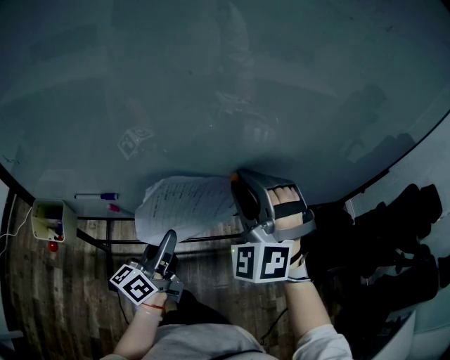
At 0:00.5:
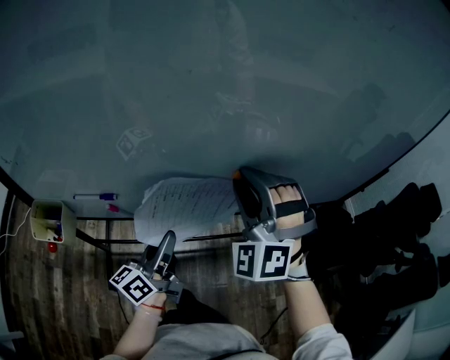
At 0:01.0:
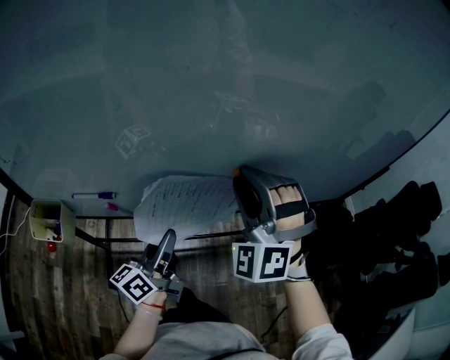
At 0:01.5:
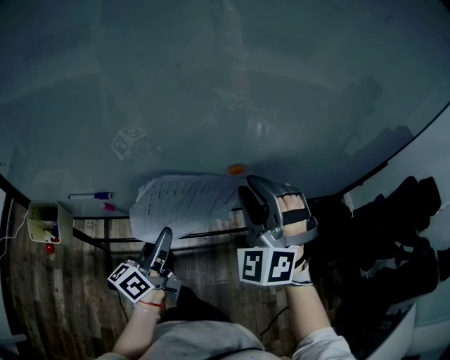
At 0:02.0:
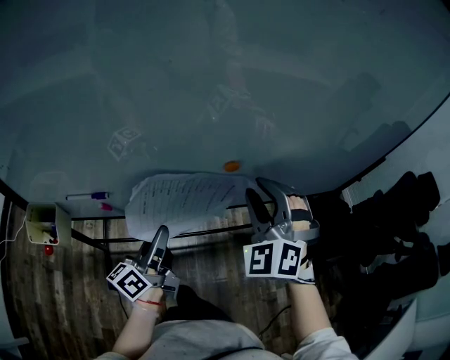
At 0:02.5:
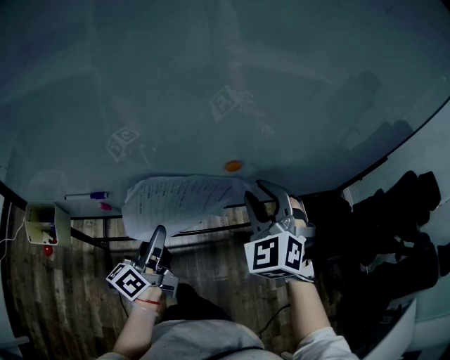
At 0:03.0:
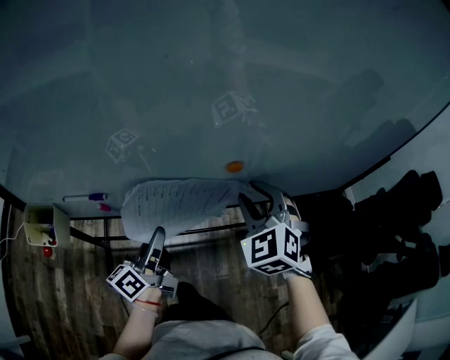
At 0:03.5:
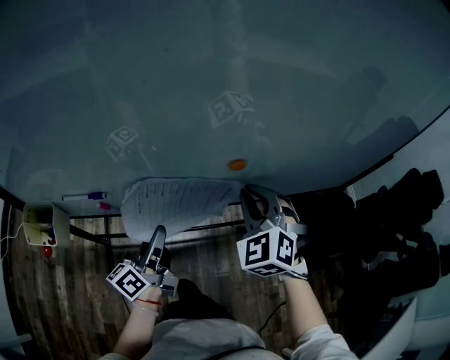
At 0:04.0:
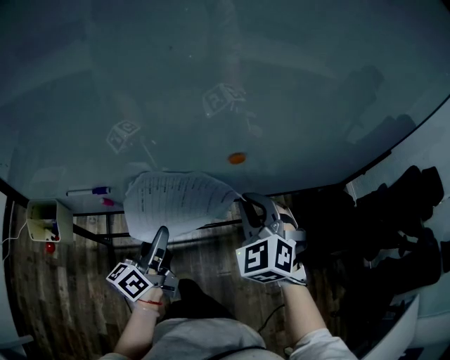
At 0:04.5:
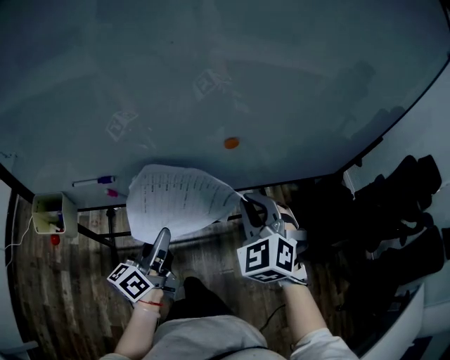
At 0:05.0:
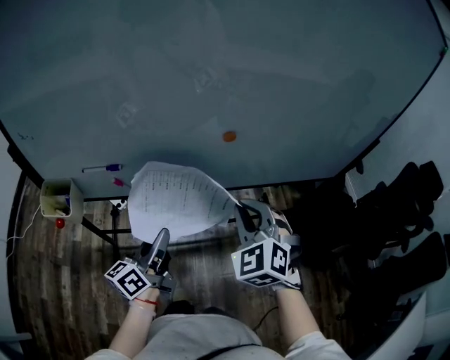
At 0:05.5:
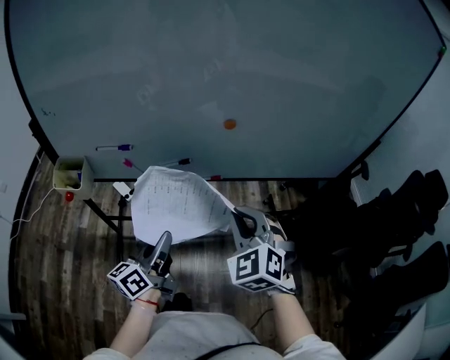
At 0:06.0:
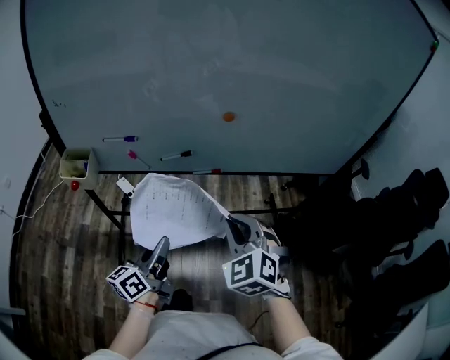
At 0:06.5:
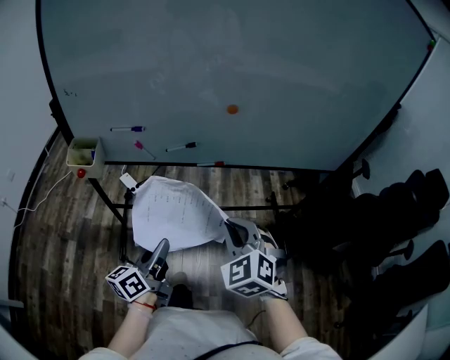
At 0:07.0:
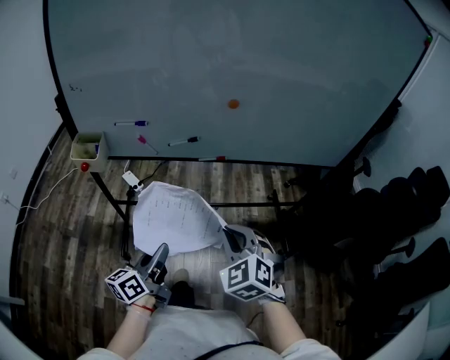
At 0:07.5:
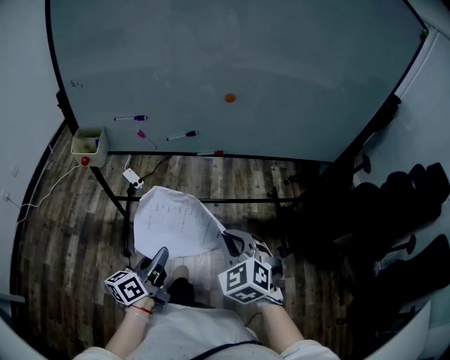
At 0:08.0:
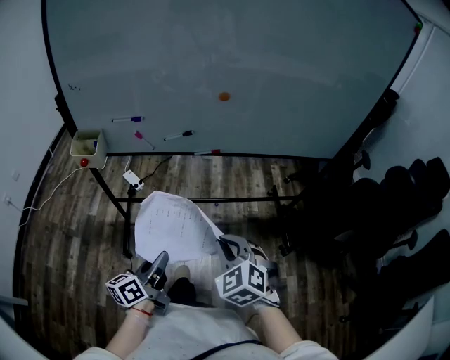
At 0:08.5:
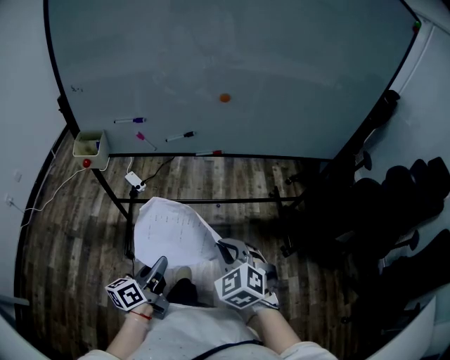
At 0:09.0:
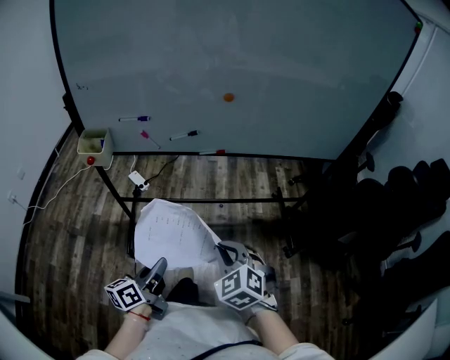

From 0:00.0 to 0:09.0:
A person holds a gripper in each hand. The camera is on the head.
From 0:00.0 to 0:02.0: The right gripper goes approximately 5 cm to the right.
From 0:02.0 to 0:04.5: The left gripper heads backward, covering approximately 5 cm; the right gripper heads backward and downward, covering about 10 cm, and closes its fingers.
From 0:04.5 to 0:07.0: Both grippers travel together backward, about 25 cm.
From 0:07.0 to 0:09.0: The right gripper is displaced backward and downward by roughly 10 cm. Meanwhile the left gripper is displaced backward by about 10 cm.

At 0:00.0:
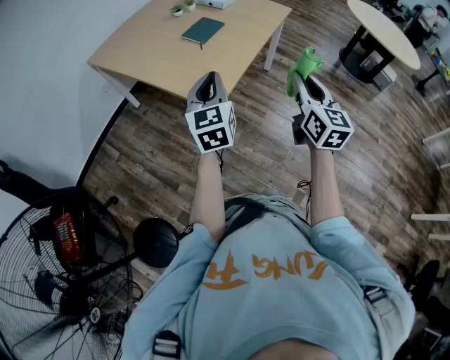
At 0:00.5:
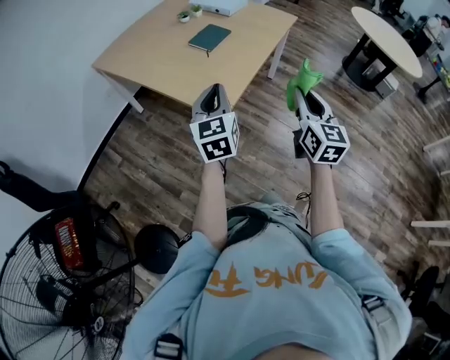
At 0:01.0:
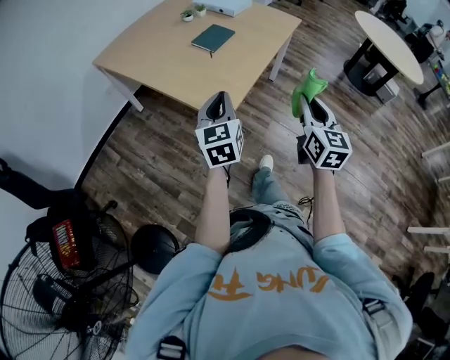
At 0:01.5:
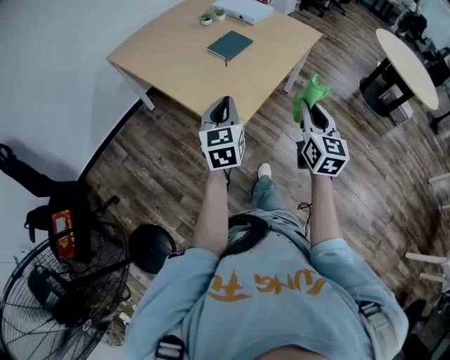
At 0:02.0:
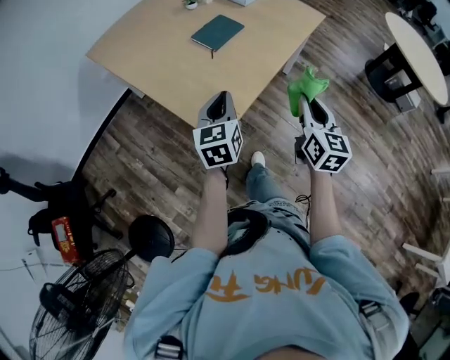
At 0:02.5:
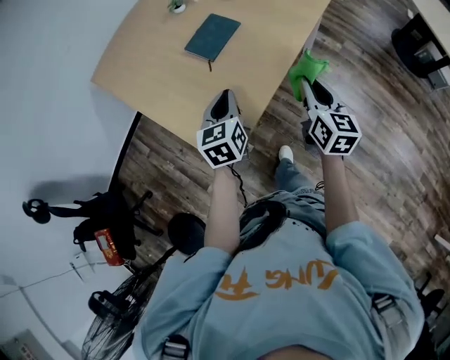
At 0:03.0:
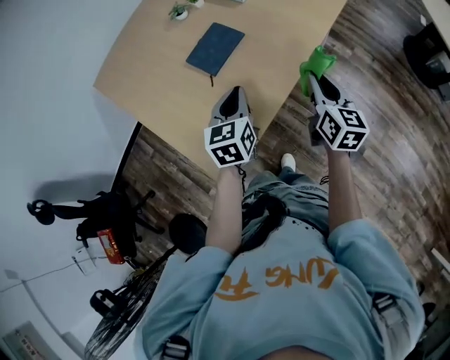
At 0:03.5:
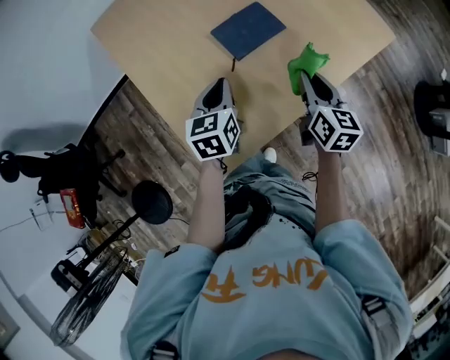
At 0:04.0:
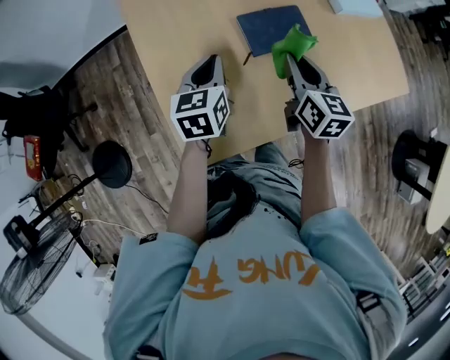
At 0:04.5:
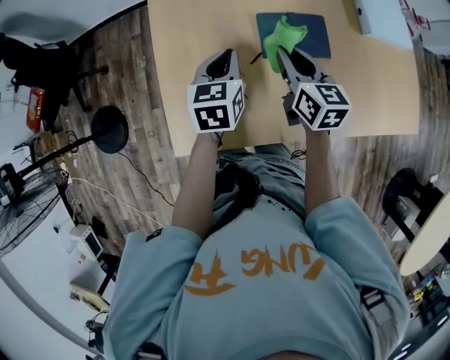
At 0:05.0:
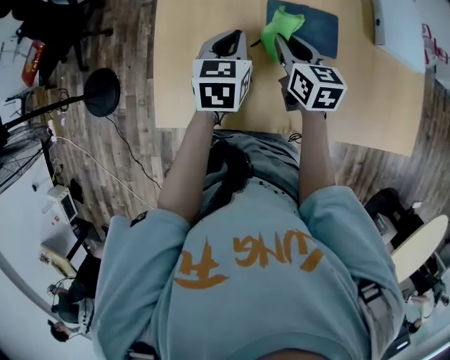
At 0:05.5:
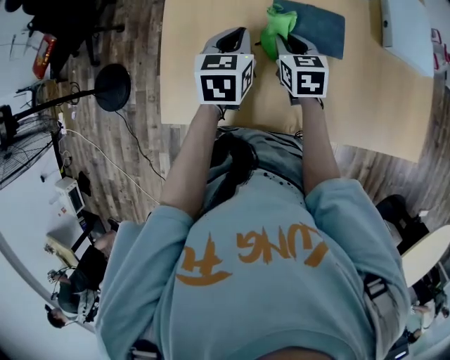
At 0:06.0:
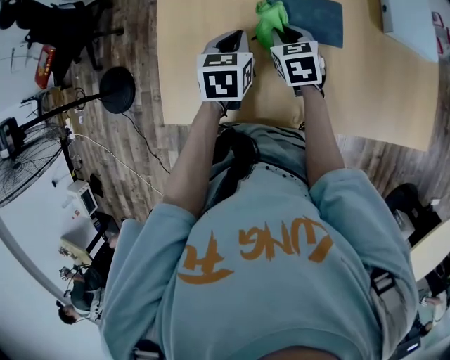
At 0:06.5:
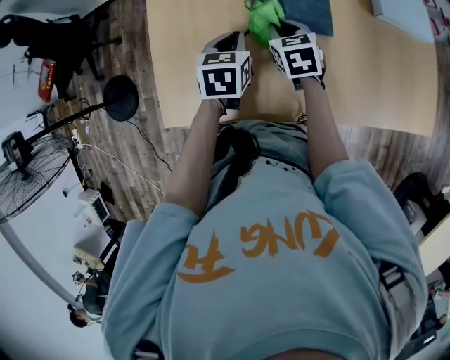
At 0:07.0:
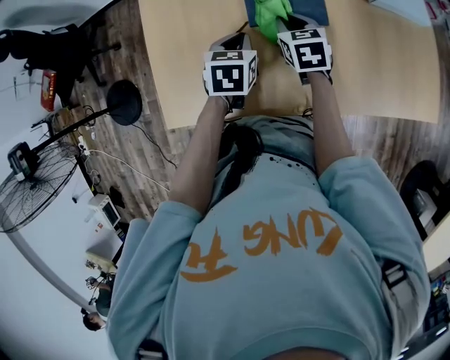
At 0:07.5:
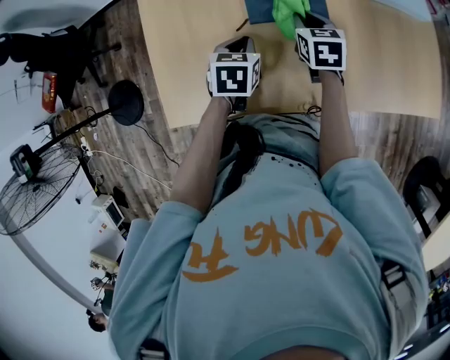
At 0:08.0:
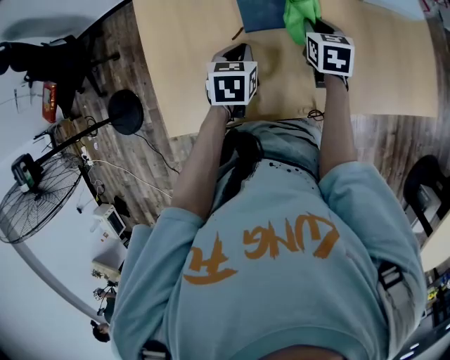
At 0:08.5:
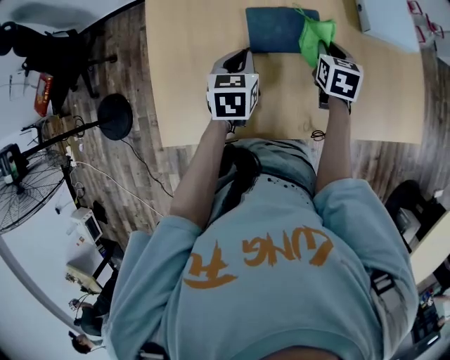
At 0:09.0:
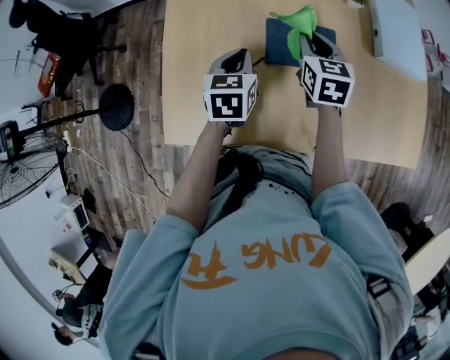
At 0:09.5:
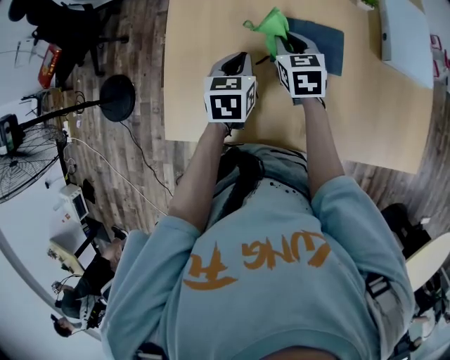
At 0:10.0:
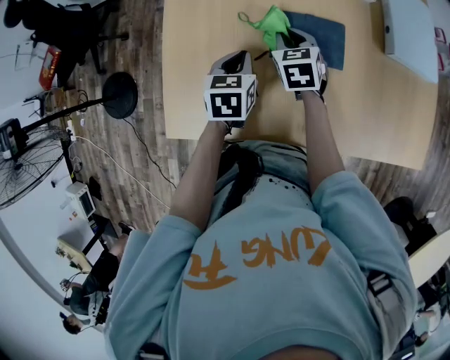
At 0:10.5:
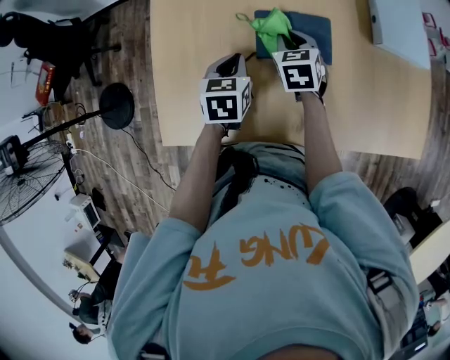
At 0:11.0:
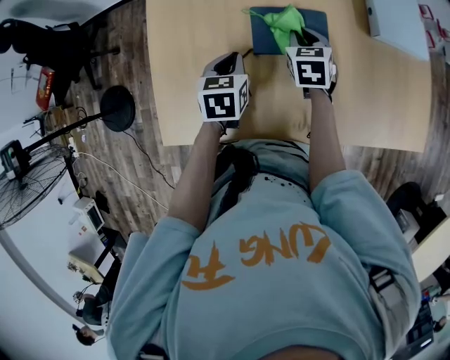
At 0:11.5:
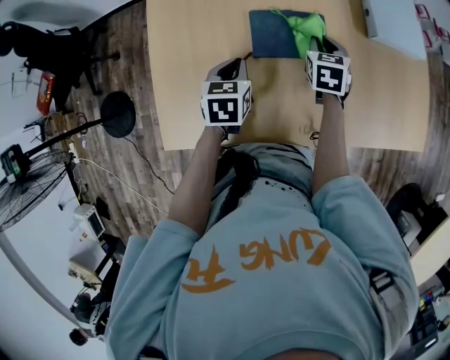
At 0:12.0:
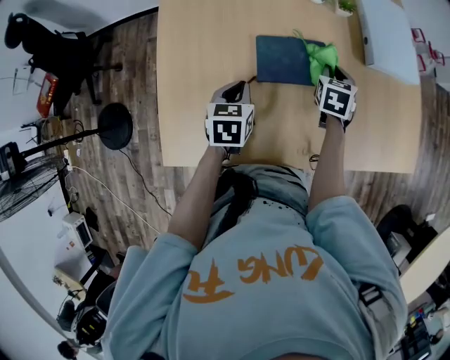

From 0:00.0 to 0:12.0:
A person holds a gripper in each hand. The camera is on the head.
From 0:00.0 to 0:02.0: Both grippers move forward and downward, about 20 cm.
From 0:02.0 to 0:04.0: The left gripper ends up some 30 cm from where it was, and swivels roughly 30 degrees; the right gripper moves about 40 cm, and turns by approximately 40 degrees.
From 0:04.0 to 0:06.0: The left gripper travels downward and to the right by approximately 10 cm, and swivels approximately 20 degrees; the right gripper moves downward and forward, approximately 15 cm, and rotates approximately 40 degrees.
From 0:06.0 to 0:08.0: The left gripper shifts some 5 cm to the right, while the right gripper travels to the right by roughly 15 cm, and rotates about 20 degrees.
From 0:08.0 to 0:10.0: The right gripper moves to the left, some 15 cm, and swivels about 20 degrees. Meanwhile the left gripper shifts some 5 cm to the left.
From 0:10.0 to 0:12.0: The right gripper heads to the right, covering approximately 20 cm, and rotates approximately 30 degrees.

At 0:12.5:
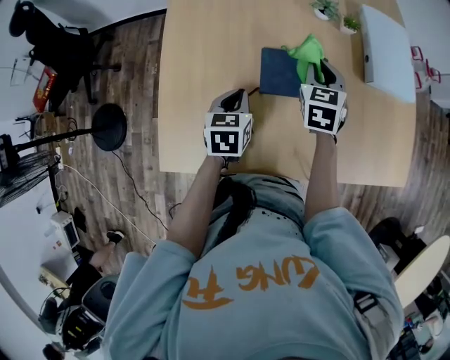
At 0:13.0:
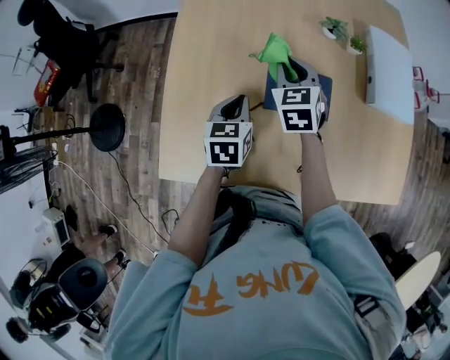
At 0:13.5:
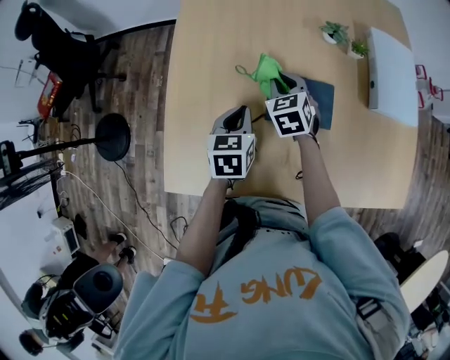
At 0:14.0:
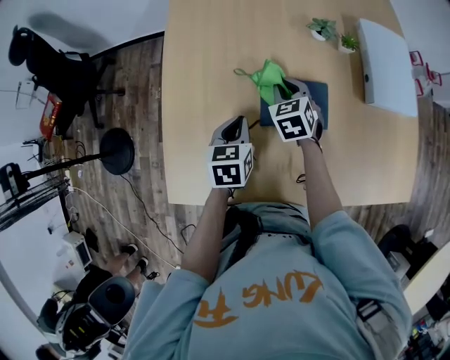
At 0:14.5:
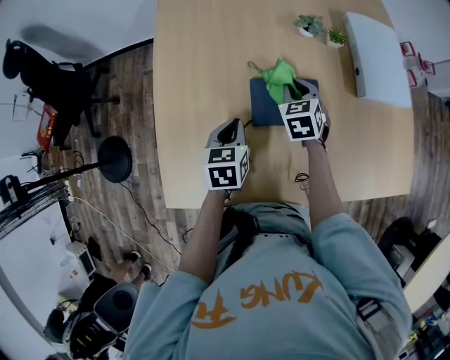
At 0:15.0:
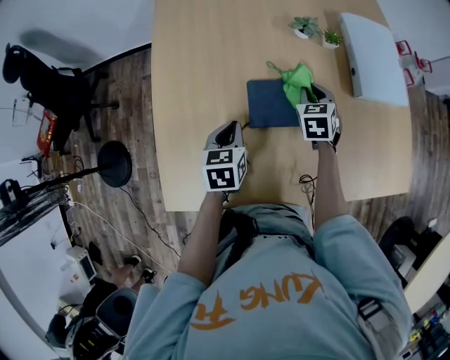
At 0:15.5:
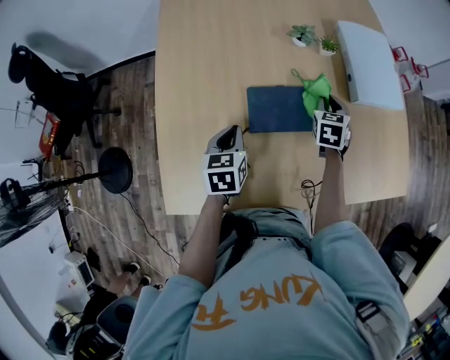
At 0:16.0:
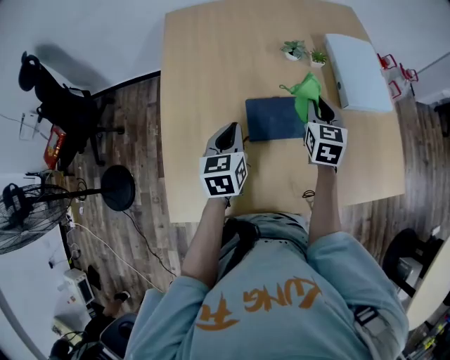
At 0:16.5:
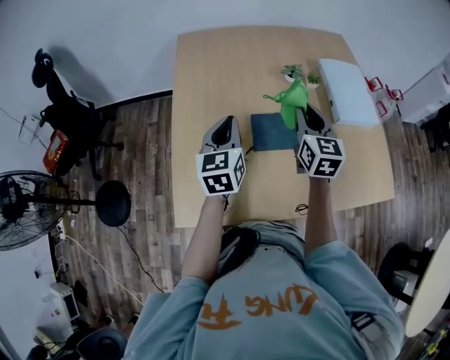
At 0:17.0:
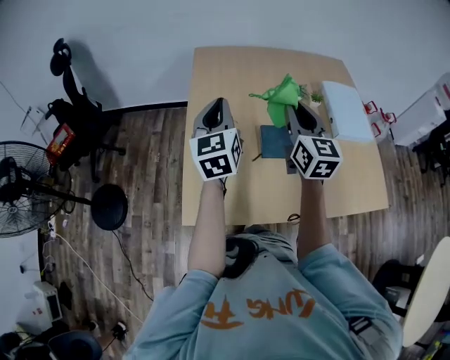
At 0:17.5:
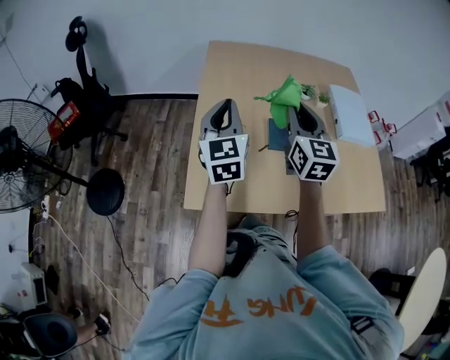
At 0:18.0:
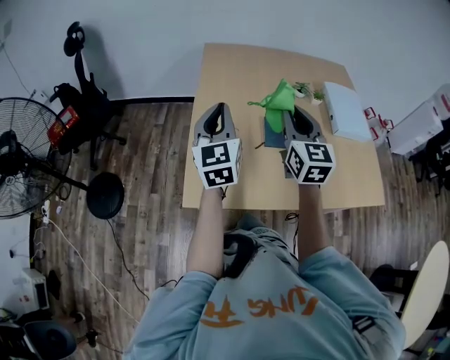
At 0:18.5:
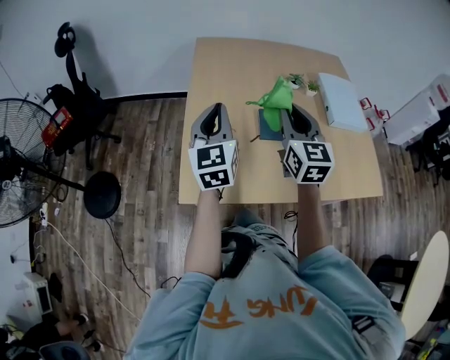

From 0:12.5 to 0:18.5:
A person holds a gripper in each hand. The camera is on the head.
From 0:12.5 to 0:14.5: The right gripper is displaced downward by approximately 5 cm, and travels to the left and back again, approximately 10 cm each way.
From 0:14.5 to 0:16.5: The left gripper goes some 20 cm upward, and rotates some 30 degrees. The right gripper shifts approximately 25 cm upward and backward, and angles its fingers upward, by roughly 30 degrees.
From 0:16.5 to 0:18.5: Both grippers travel together to the left, backward and upward, roughly 20 cm.
